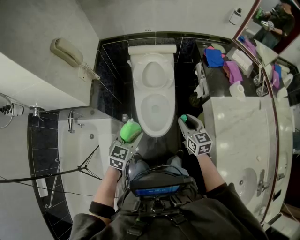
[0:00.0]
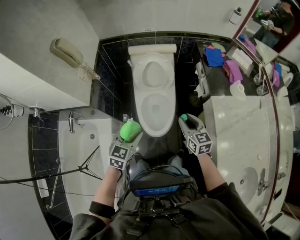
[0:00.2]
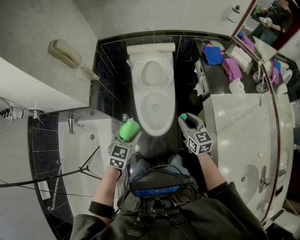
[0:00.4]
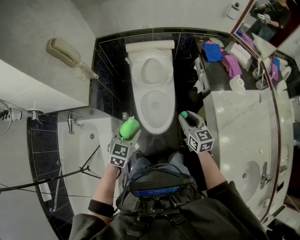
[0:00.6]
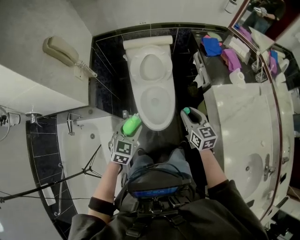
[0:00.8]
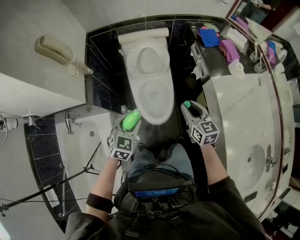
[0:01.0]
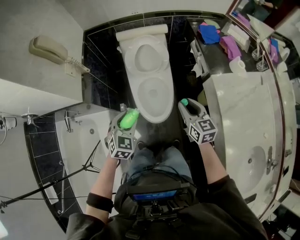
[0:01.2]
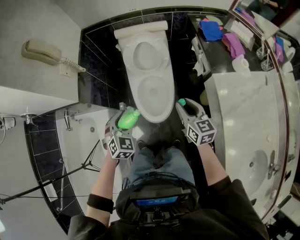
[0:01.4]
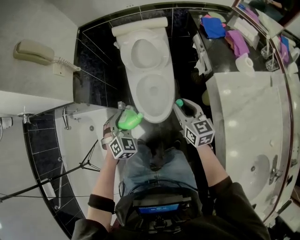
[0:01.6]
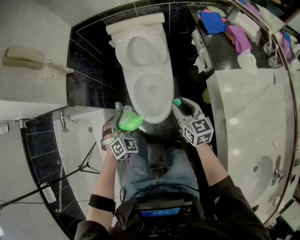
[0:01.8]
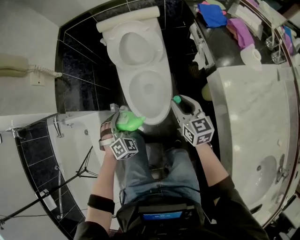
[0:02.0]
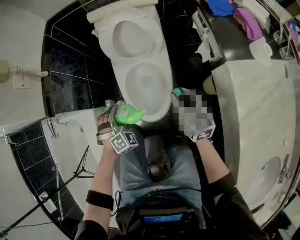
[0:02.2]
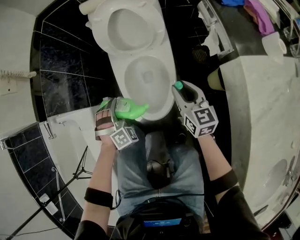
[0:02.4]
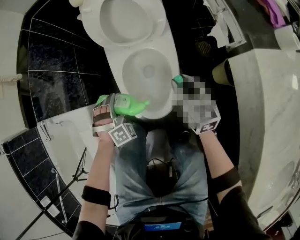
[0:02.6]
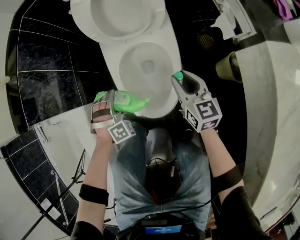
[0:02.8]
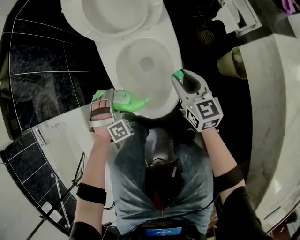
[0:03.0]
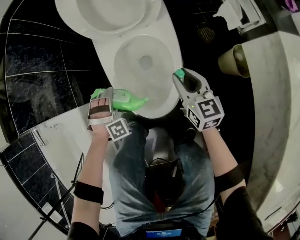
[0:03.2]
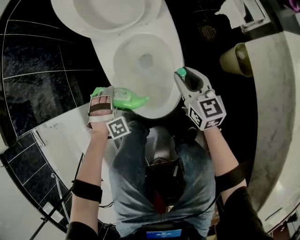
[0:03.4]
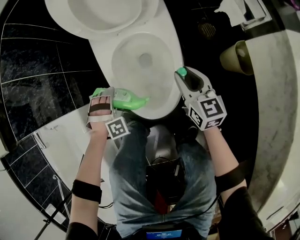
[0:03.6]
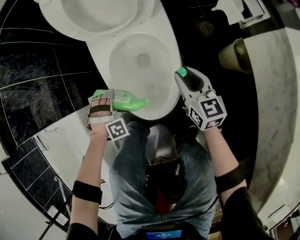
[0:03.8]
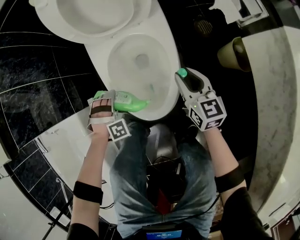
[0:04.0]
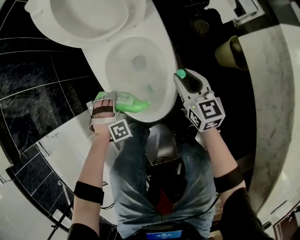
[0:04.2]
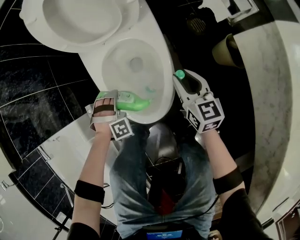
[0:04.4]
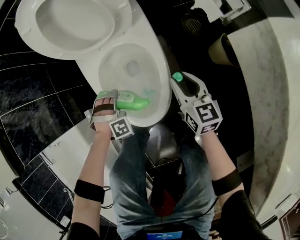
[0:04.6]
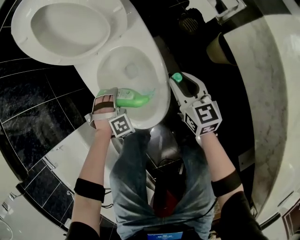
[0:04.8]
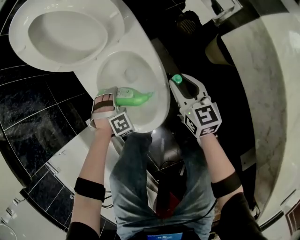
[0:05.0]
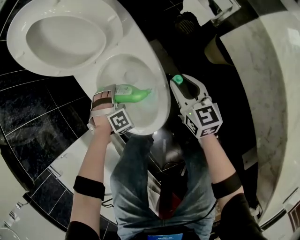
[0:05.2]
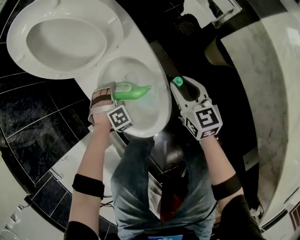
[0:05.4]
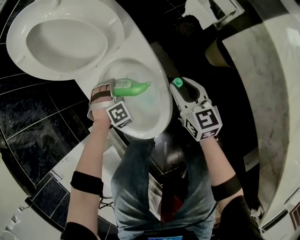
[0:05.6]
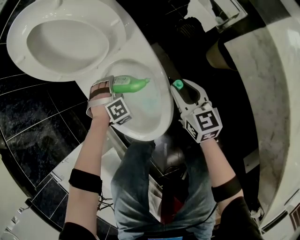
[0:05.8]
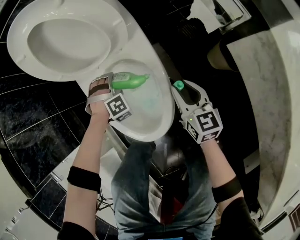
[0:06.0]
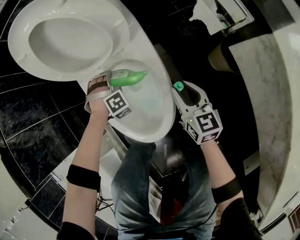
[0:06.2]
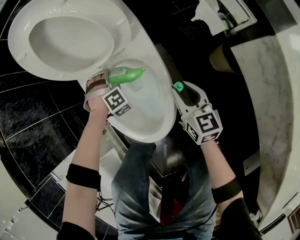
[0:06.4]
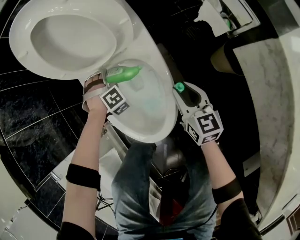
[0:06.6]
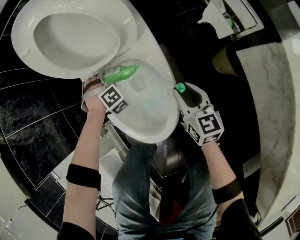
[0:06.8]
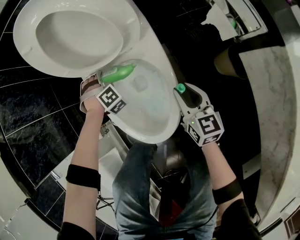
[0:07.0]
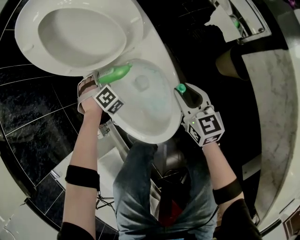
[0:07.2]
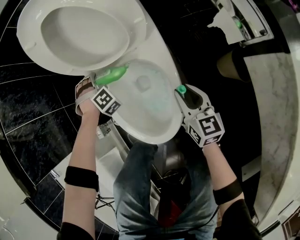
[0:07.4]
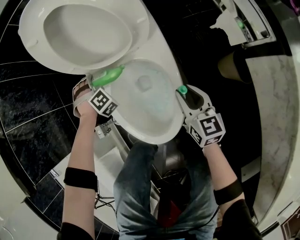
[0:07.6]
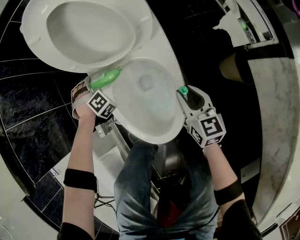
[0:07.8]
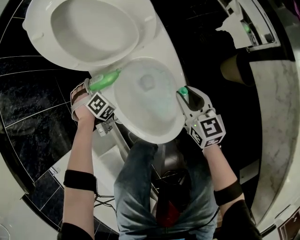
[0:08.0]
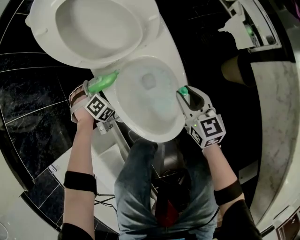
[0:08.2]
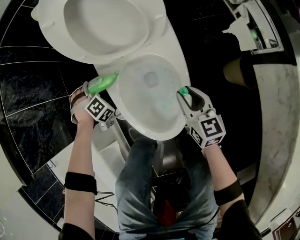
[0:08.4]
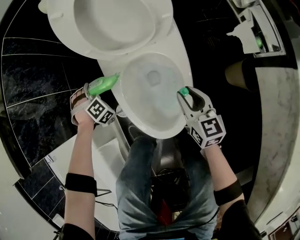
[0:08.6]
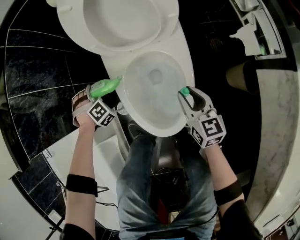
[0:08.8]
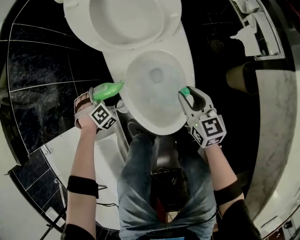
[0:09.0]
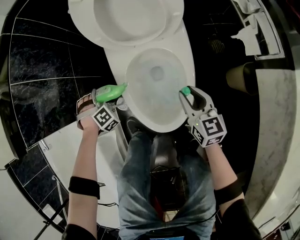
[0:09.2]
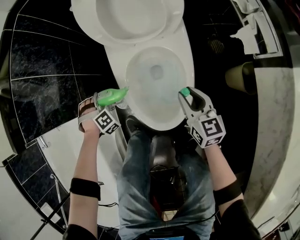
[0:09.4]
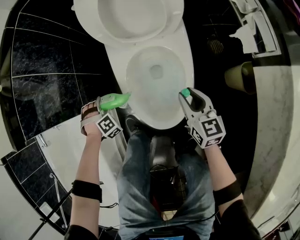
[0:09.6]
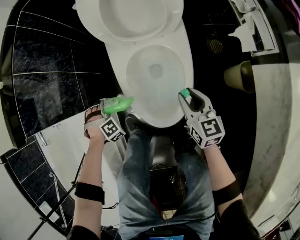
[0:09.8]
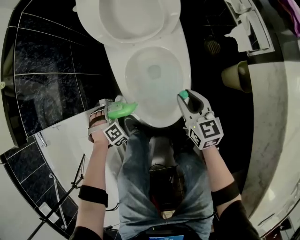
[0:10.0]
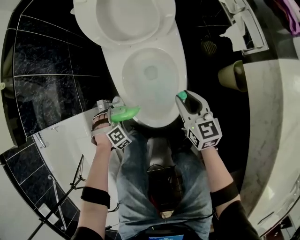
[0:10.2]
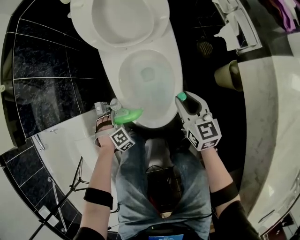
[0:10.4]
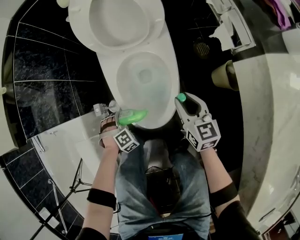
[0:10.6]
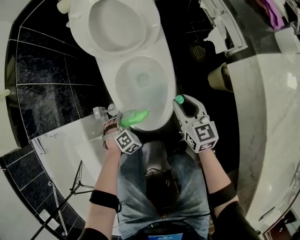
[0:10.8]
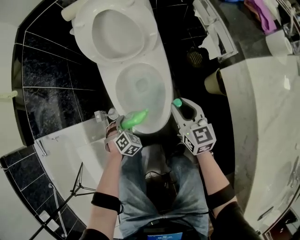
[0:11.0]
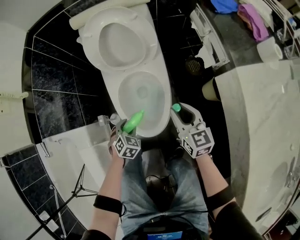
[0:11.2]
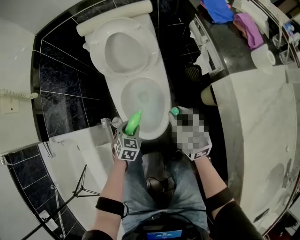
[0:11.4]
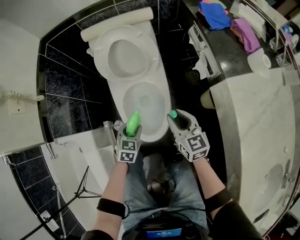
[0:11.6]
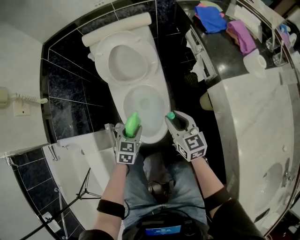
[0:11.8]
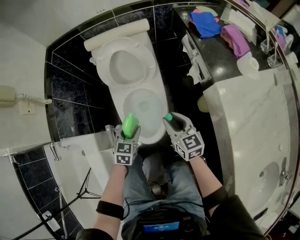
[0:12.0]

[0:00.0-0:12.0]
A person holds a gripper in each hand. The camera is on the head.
0:00.0 to 0:01.6: The left gripper heads downward, covering approximately 10 cm, and rotates about 40 degrees. The right gripper shifts approximately 5 cm downward.
0:01.6 to 0:03.0: Both grippers travel together downward, some 35 cm. The left gripper rotates around the line of its fingers by some 40 degrees, clockwise from behind.
0:03.0 to 0:04.4: The left gripper heads downward and to the right, covering about 10 cm. Meanwhile the right gripper goes roughly 10 cm to the right and downward.
0:04.4 to 0:06.0: The left gripper shifts some 20 cm forward and to the right.
0:06.0 to 0:07.6: The left gripper travels to the left and forward by about 15 cm, and turns by about 20 degrees. The right gripper ends up approximately 5 cm from where it was.
0:07.6 to 0:09.0: The right gripper travels to the left by approximately 5 cm; the left gripper goes about 15 cm to the left.
0:09.0 to 0:10.4: The left gripper goes roughly 20 cm backward. Meanwhile the right gripper is displaced backward by approximately 5 cm.
0:10.4 to 0:12.0: Both grippers travel together upward, about 25 cm. The left gripper turns by some 70 degrees.

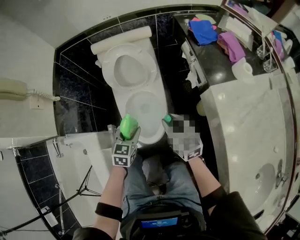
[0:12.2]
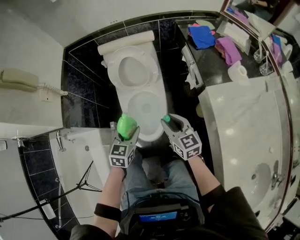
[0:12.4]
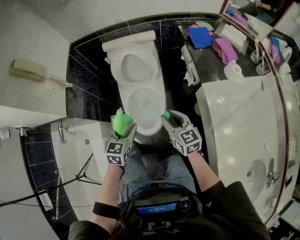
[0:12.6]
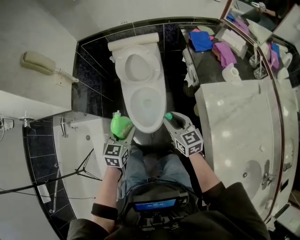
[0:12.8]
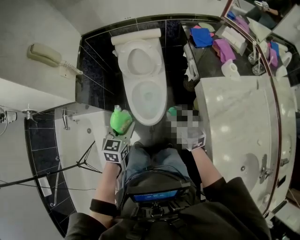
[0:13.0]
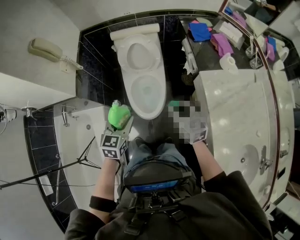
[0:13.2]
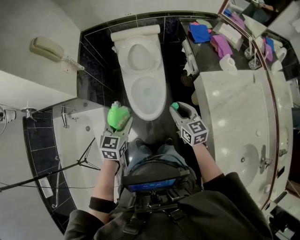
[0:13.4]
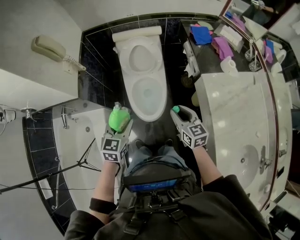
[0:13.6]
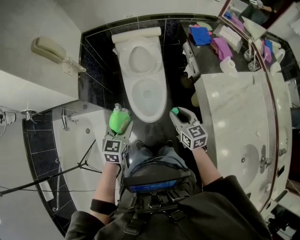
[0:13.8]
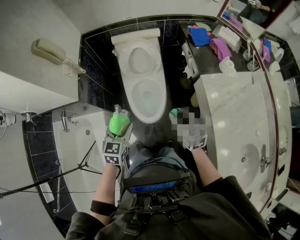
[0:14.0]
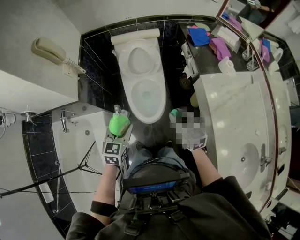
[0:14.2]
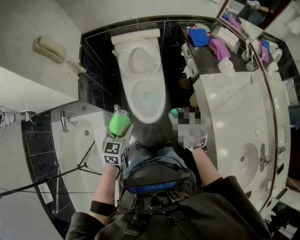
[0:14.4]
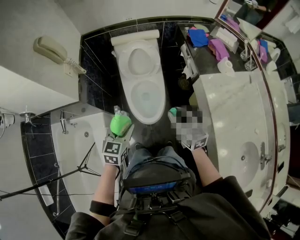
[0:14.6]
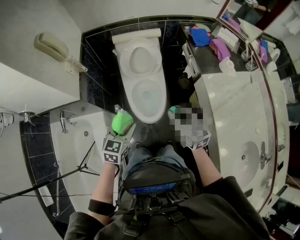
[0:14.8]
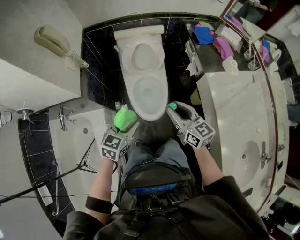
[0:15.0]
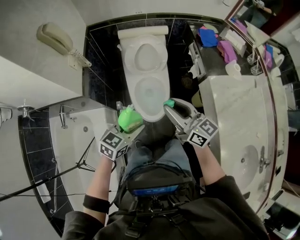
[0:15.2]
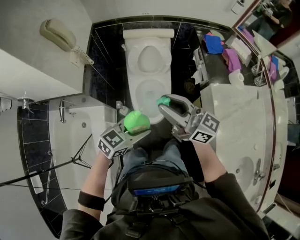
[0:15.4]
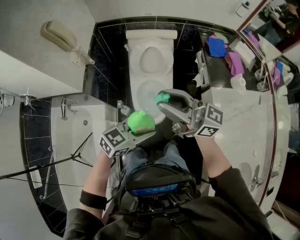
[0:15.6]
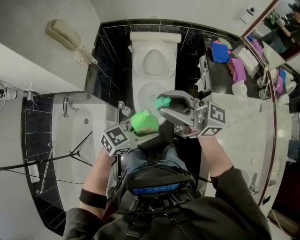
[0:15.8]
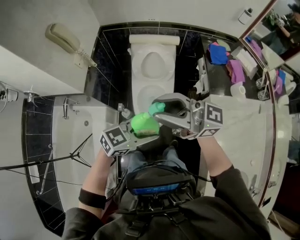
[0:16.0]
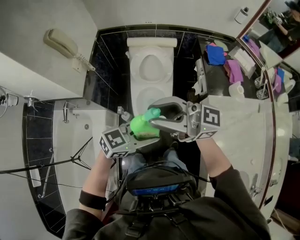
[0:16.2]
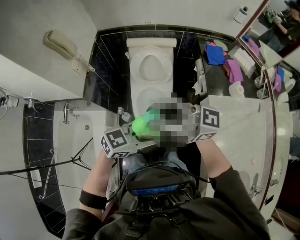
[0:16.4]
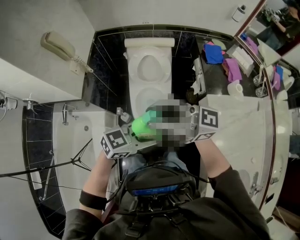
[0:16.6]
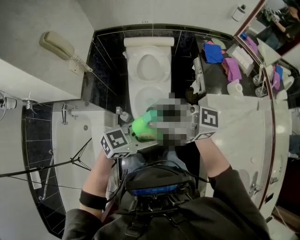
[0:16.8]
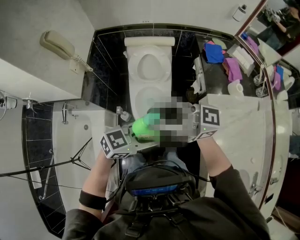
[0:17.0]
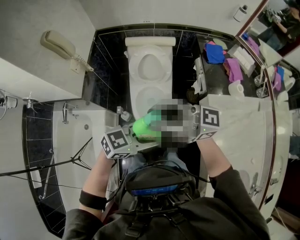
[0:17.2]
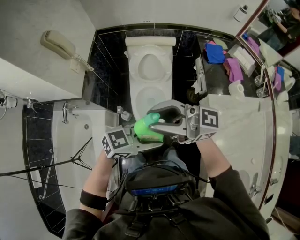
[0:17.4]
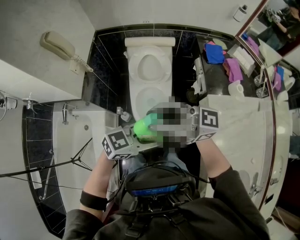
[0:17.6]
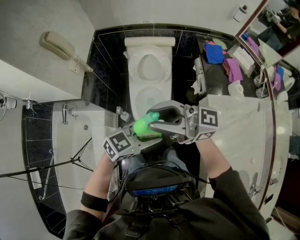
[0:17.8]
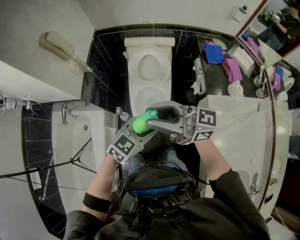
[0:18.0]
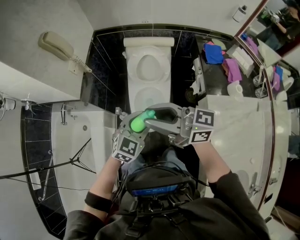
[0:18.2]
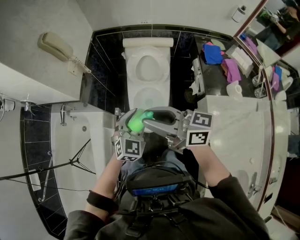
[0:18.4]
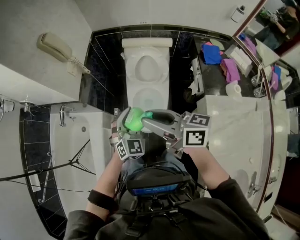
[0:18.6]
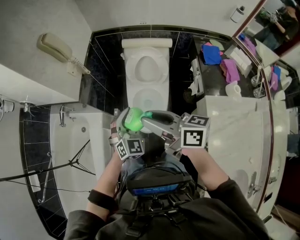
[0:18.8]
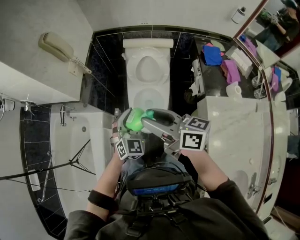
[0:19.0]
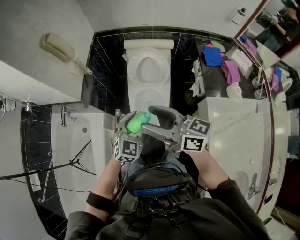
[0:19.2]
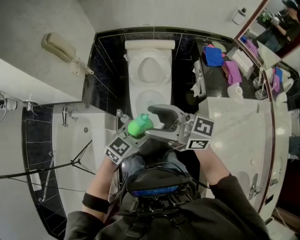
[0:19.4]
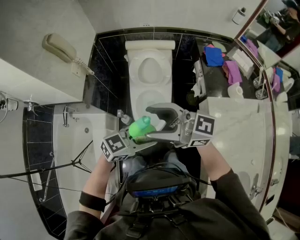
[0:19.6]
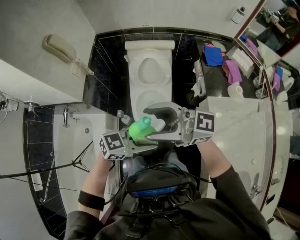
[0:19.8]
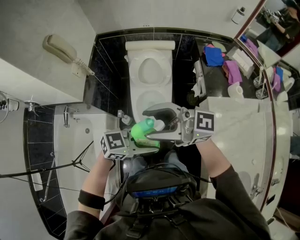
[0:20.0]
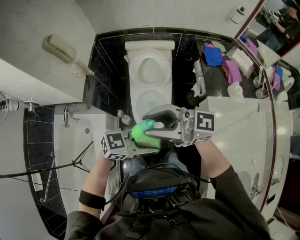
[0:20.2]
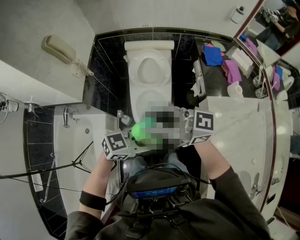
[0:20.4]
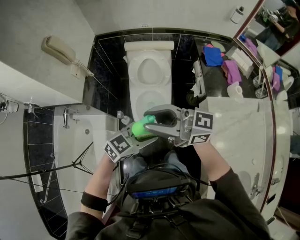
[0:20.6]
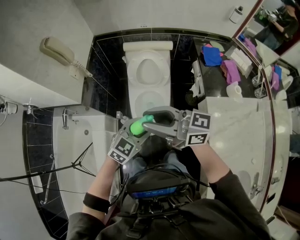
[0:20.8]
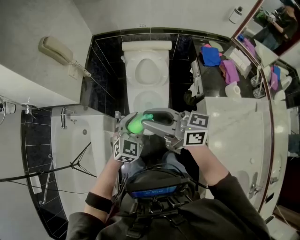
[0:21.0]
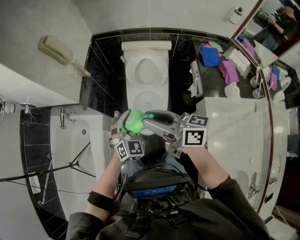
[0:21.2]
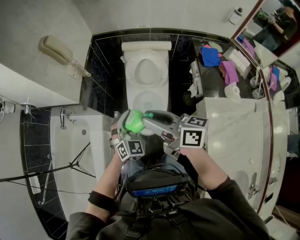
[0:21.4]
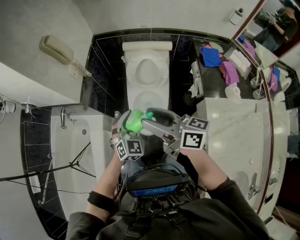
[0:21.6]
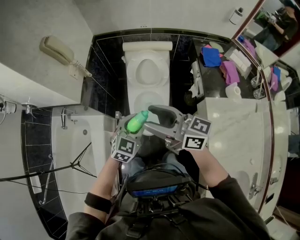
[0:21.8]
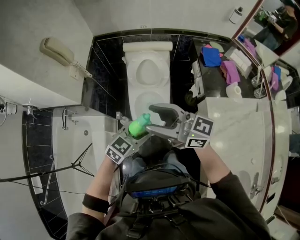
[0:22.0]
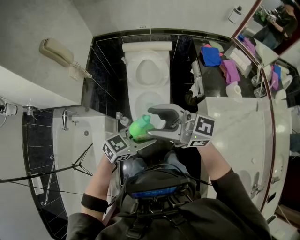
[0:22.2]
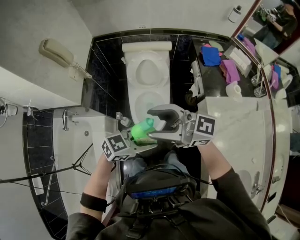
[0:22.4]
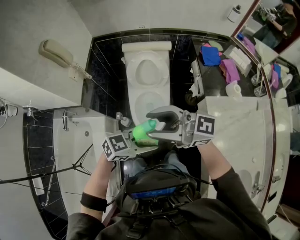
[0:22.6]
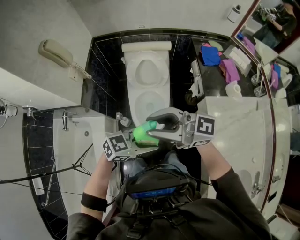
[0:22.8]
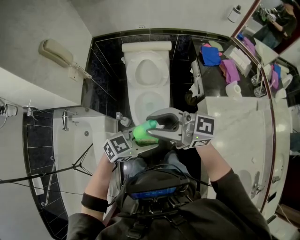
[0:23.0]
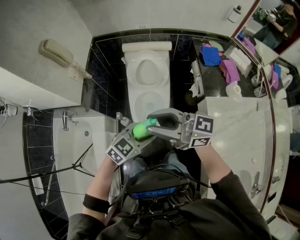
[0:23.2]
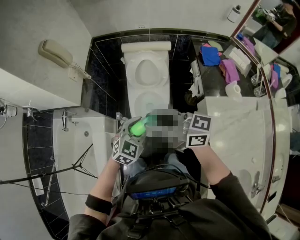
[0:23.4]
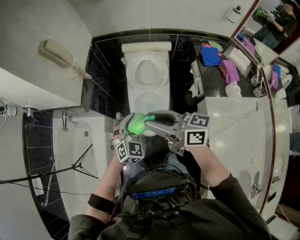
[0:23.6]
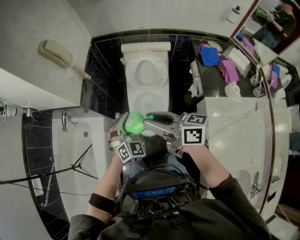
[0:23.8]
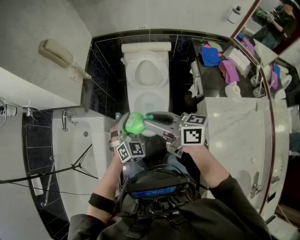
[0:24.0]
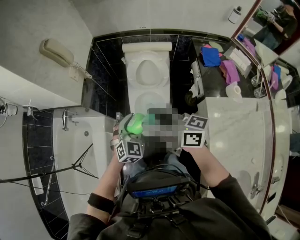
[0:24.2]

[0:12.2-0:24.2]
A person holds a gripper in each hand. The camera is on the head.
0:12.2 to 0:13.8: Both grippers move upward and backward, approximately 25 cm.
0:13.8 to 0:15.2: The right gripper heads upward and to the left, covering about 15 cm, and swivels approximately 30 degrees. Meanwhile the left gripper swivels approximately 30 degrees.
0:15.2 to 0:16.6: The left gripper moves about 15 cm, and changes its angle by roughly 20 degrees. The right gripper shifts about 15 cm upward, and rotates approximately 50 degrees.
0:16.6 to 0:18.2: The right gripper moves some 5 cm; the left gripper shifts by some 10 cm, and changes its angle by approximately 40 degrees.
0:18.2 to 0:19.8: The right gripper opens up. The left gripper ends up some 10 cm from where it was, and swivels about 50 degrees.
0:19.8 to 0:21.2: The right gripper heads downward, covering roughly 5 cm, changes its angle by some 40 degrees, and closes up; the left gripper ends up roughly 15 cm from where it was, and turns by some 70 degrees.
0:21.2 to 0:22.6: The left gripper ends up some 15 cm from where it was, and rotates about 70 degrees. The right gripper goes some 5 cm upward, and turns by roughly 40 degrees.
0:22.6 to 0:24.2: The left gripper changes place by roughly 15 cm, and swivels about 70 degrees. Meanwhile the right gripper shifts approximately 5 cm downward, and swivels roughly 30 degrees.
